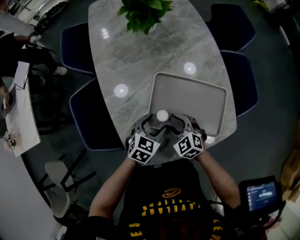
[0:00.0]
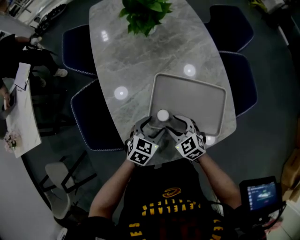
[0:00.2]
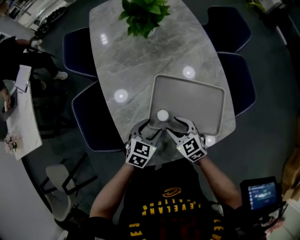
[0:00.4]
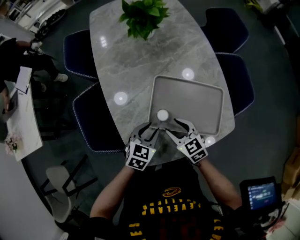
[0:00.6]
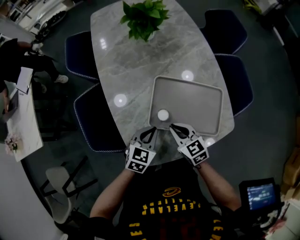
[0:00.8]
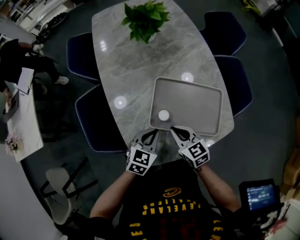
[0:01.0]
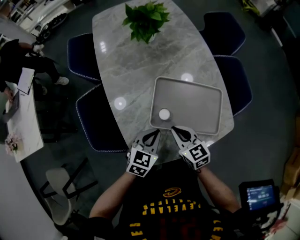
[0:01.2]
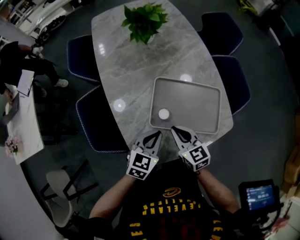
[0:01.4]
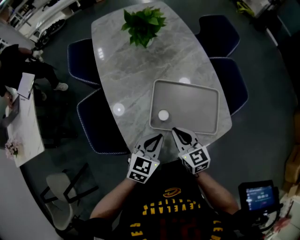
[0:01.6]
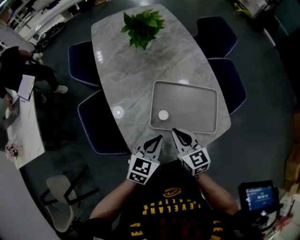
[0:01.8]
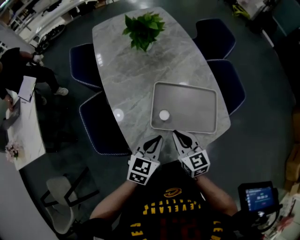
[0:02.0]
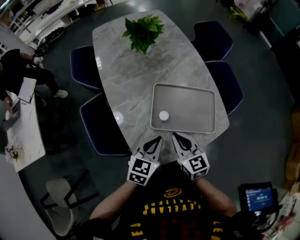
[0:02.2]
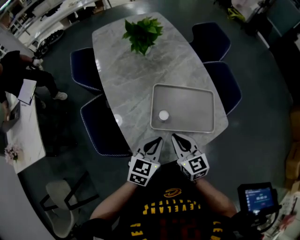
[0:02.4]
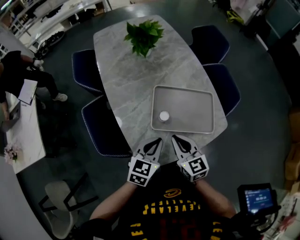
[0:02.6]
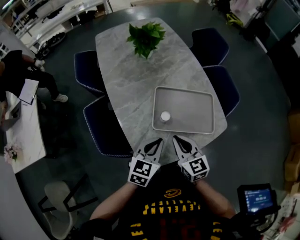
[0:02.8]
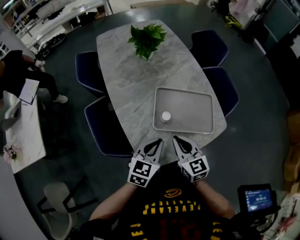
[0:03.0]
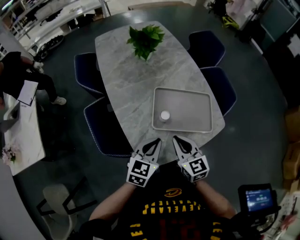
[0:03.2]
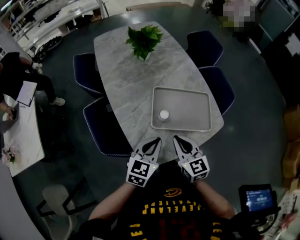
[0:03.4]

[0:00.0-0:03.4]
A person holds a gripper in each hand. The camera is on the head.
0:00.0 to 0:01.6: The right gripper shifts approximately 10 cm upward, rotates approximately 40 degrees, and closes its fingers. The left gripper is displaced upward and backward by roughly 15 cm, and closes its fingers.
0:01.6 to 0:03.4: The left gripper moves upward, roughly 5 cm, while the right gripper moves backward and upward, about 10 cm.

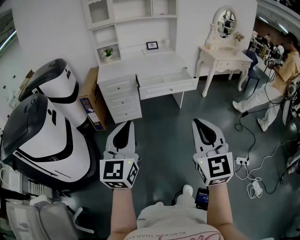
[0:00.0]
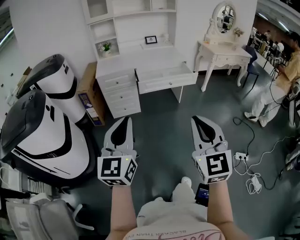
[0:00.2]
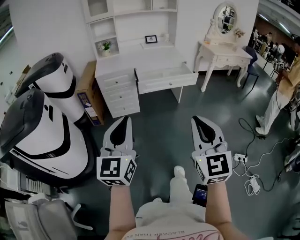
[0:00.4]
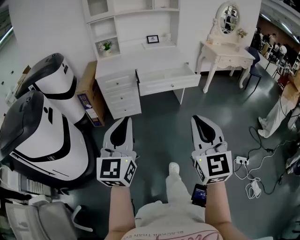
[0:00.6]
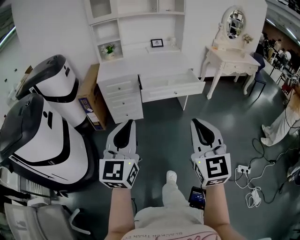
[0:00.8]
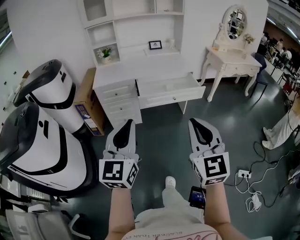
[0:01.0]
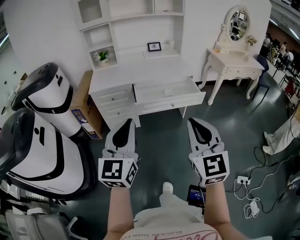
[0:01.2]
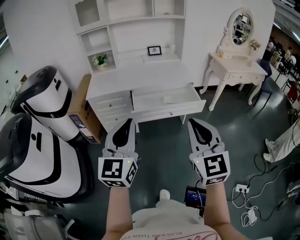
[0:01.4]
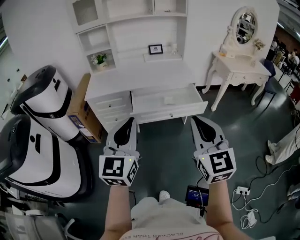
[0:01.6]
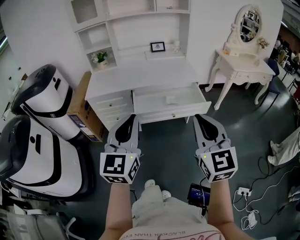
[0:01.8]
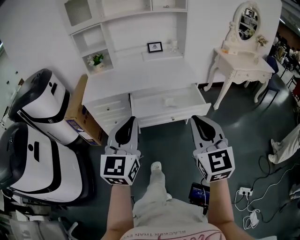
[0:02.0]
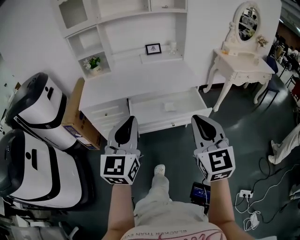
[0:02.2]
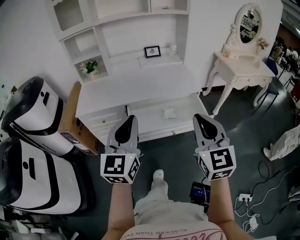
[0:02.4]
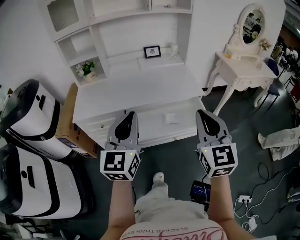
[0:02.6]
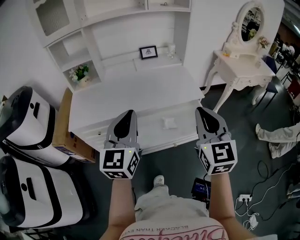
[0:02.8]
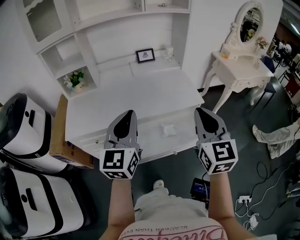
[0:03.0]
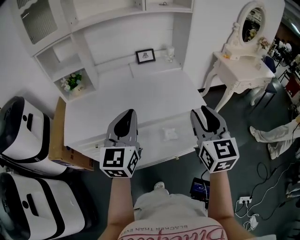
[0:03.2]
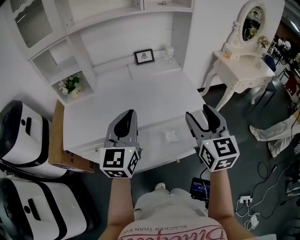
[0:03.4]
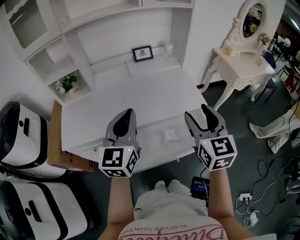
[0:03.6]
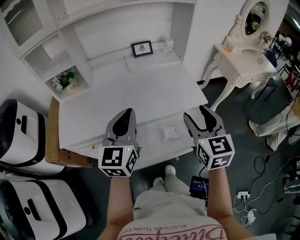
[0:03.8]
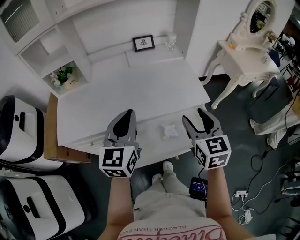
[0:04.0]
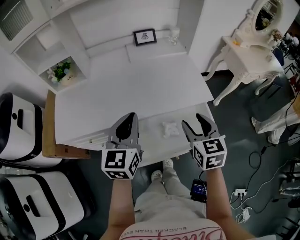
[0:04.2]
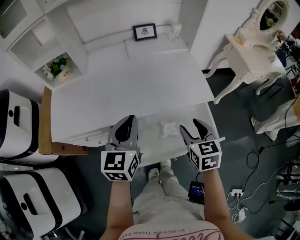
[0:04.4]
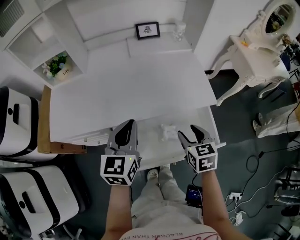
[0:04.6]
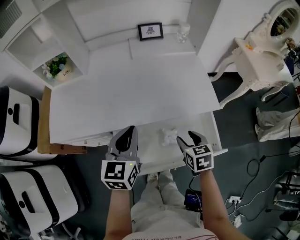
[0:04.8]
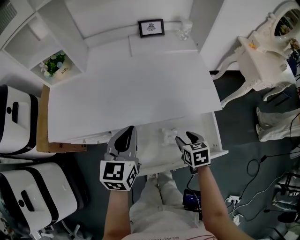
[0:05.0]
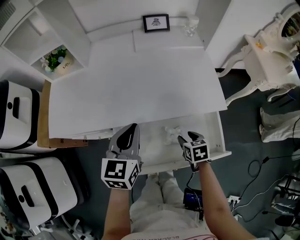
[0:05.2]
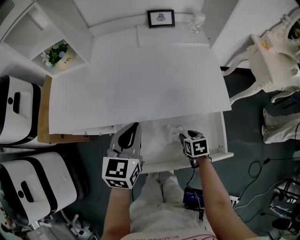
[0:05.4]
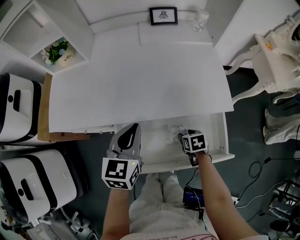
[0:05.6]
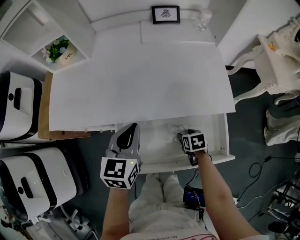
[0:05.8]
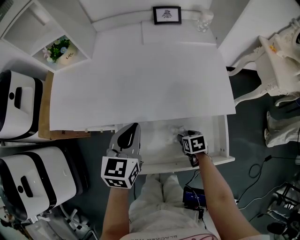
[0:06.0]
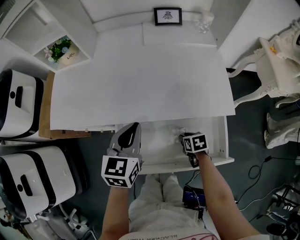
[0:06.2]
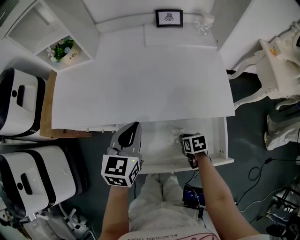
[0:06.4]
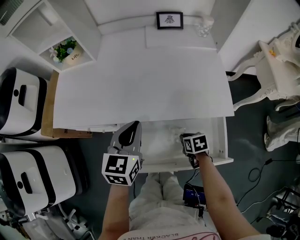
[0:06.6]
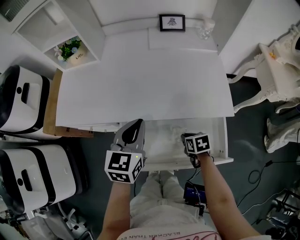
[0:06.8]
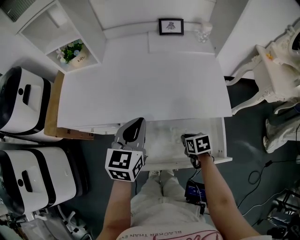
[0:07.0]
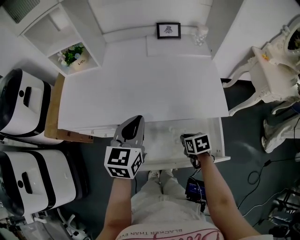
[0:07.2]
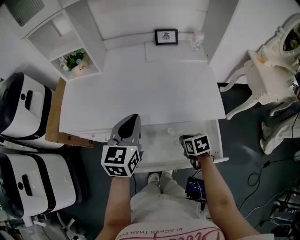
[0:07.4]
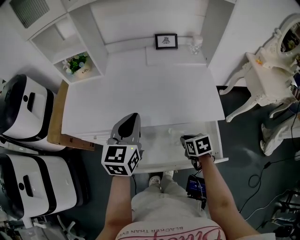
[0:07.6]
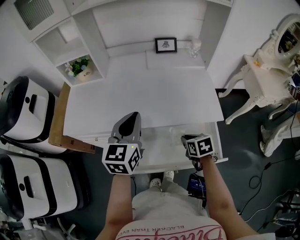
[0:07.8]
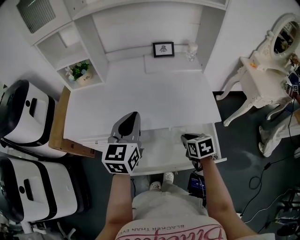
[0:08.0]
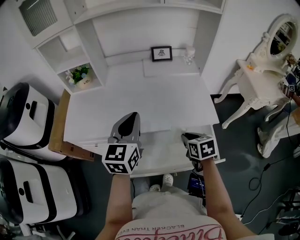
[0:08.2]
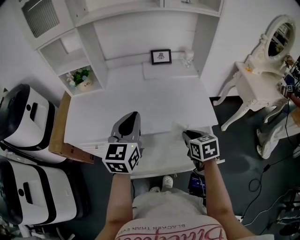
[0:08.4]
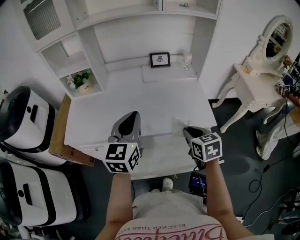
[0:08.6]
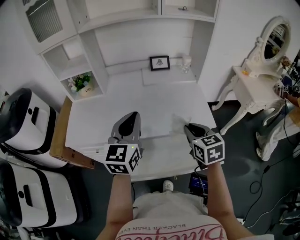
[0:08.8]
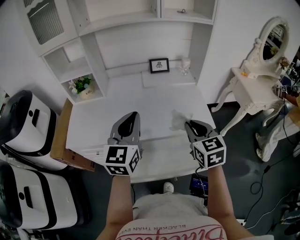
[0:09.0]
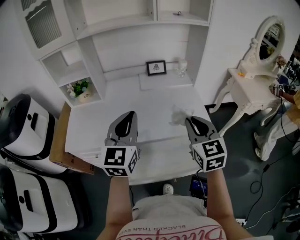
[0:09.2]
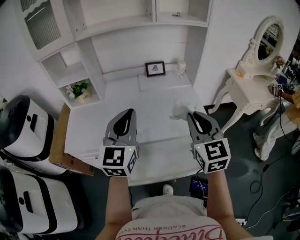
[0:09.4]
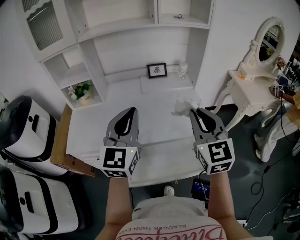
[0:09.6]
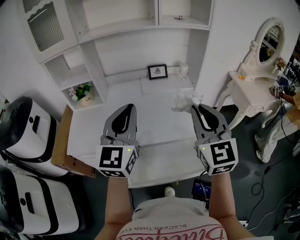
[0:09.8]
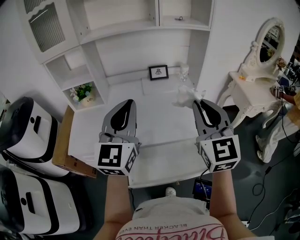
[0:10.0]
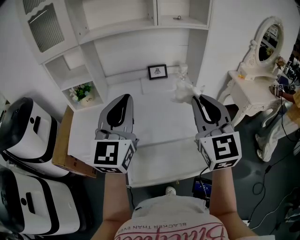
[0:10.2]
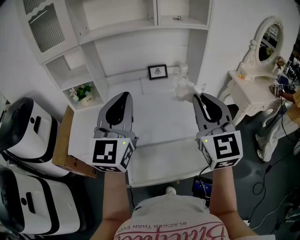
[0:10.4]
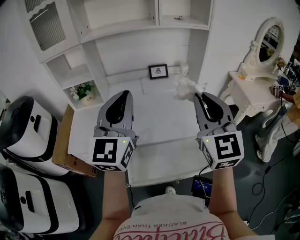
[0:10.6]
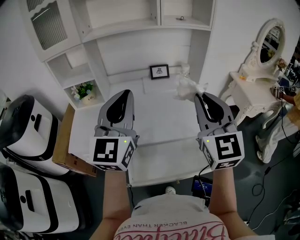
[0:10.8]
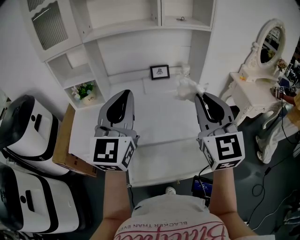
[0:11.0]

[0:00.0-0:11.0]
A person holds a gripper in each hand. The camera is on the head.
0:00.0 to 0:01.6: The grippers both shift forward by about 35 cm.
0:01.6 to 0:03.2: The two grippers travel together, forward, roughly 40 cm. The right gripper opens its fingers.
0:03.2 to 0:04.8: The left gripper travels downward and forward by roughly 20 cm, and rotates some 20 degrees; the right gripper is displaced downward by some 30 cm, points its fingers some 40 degrees further downward, and opens.
0:04.8 to 0:06.2: The left gripper moves roughly 5 cm. Meanwhile the right gripper heads downward, covering roughly 15 cm, turns by about 30 degrees, and closes up.
0:06.2 to 0:07.8: Both grippers move upward, approximately 15 cm. The right gripper closes its fingers.
0:07.8 to 0:09.4: The right gripper heads upward, covering about 30 cm, and tips its fingers upward by about 50 degrees, while the left gripper goes approximately 10 cm upward, and swivels approximately 20 degrees.
0:09.4 to 0:11.0: Both grippers move upward, approximately 10 cm.

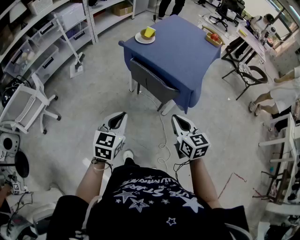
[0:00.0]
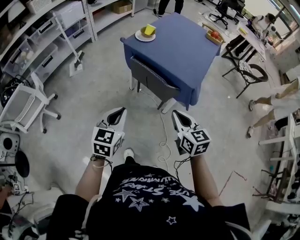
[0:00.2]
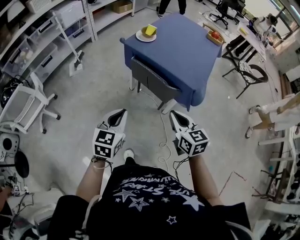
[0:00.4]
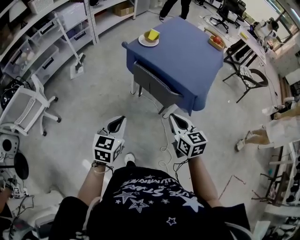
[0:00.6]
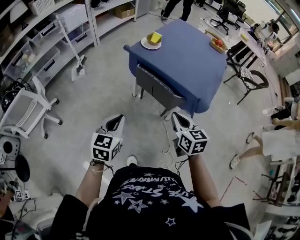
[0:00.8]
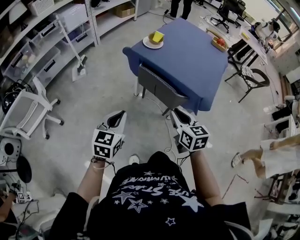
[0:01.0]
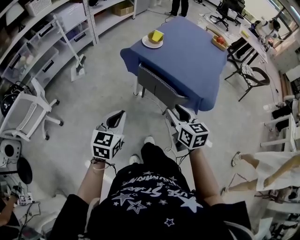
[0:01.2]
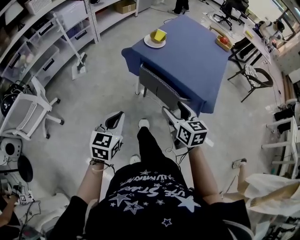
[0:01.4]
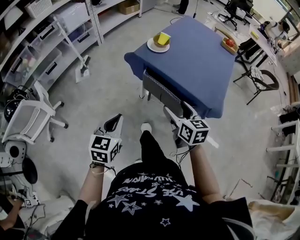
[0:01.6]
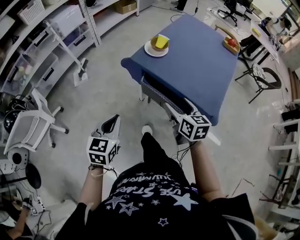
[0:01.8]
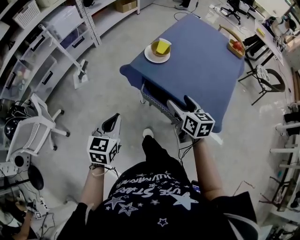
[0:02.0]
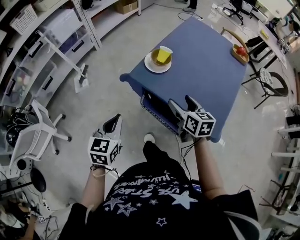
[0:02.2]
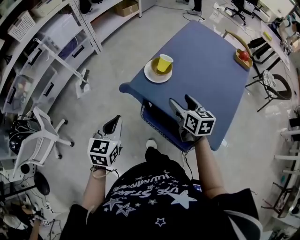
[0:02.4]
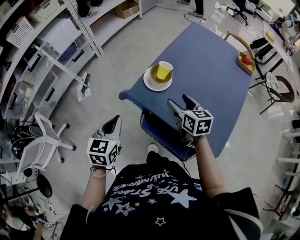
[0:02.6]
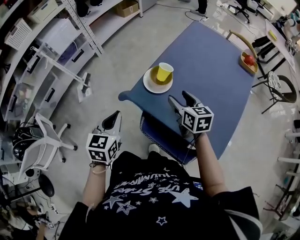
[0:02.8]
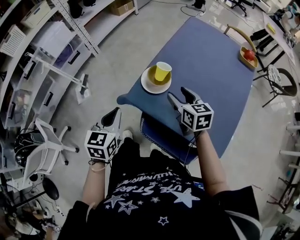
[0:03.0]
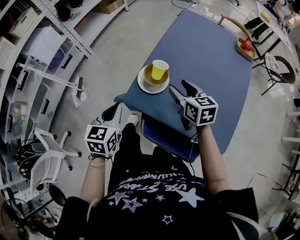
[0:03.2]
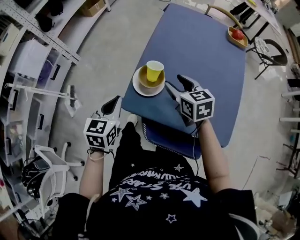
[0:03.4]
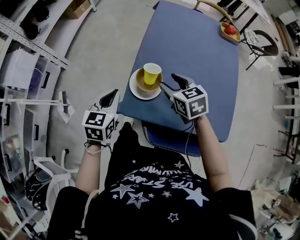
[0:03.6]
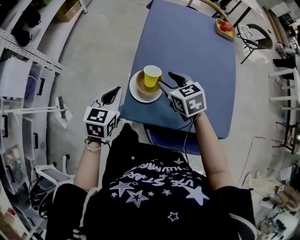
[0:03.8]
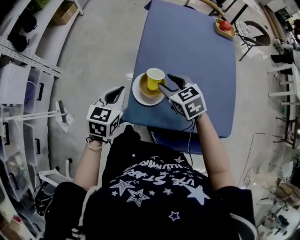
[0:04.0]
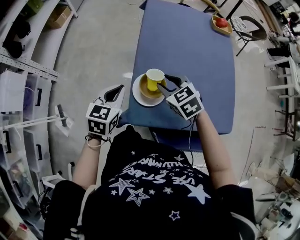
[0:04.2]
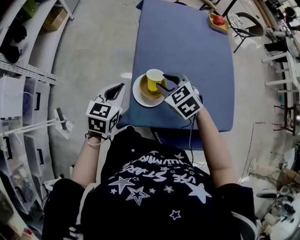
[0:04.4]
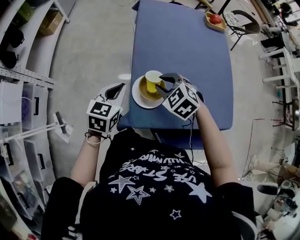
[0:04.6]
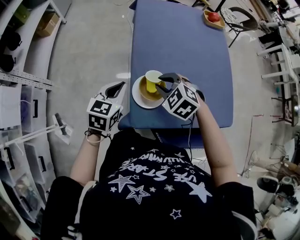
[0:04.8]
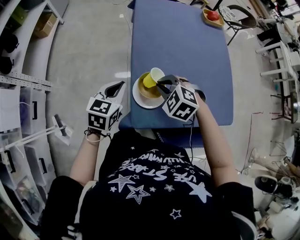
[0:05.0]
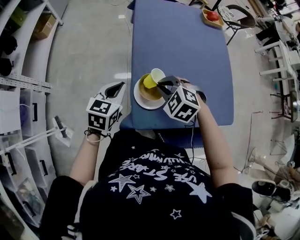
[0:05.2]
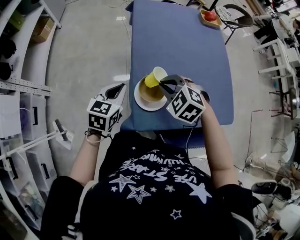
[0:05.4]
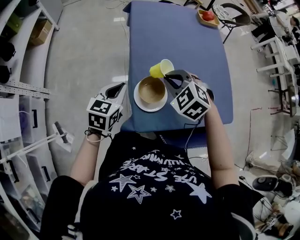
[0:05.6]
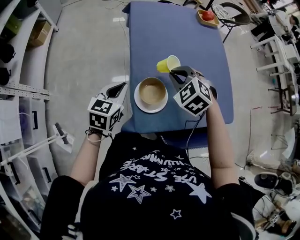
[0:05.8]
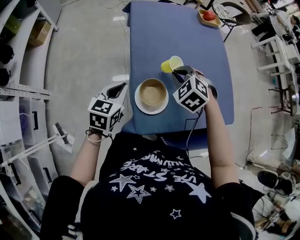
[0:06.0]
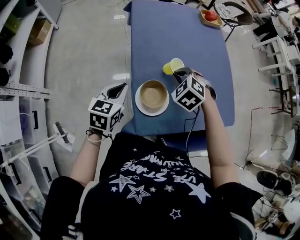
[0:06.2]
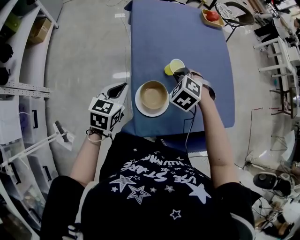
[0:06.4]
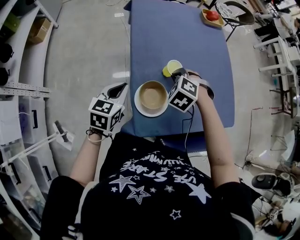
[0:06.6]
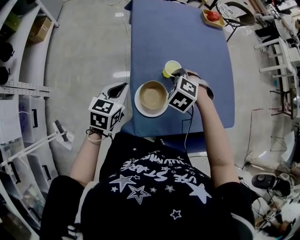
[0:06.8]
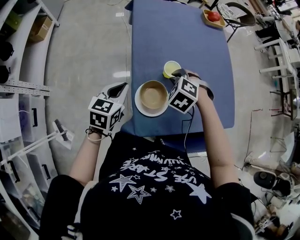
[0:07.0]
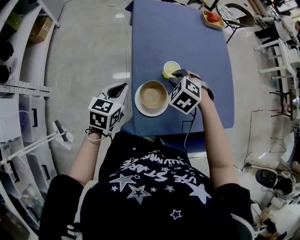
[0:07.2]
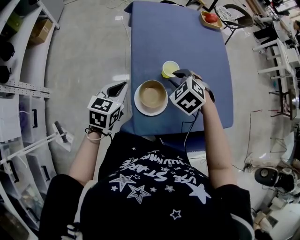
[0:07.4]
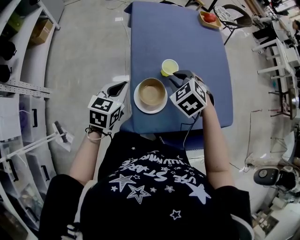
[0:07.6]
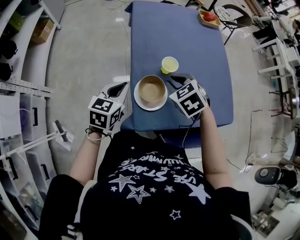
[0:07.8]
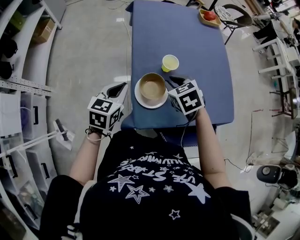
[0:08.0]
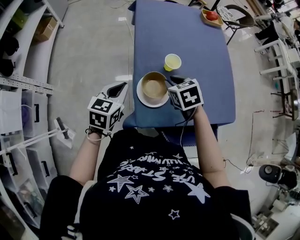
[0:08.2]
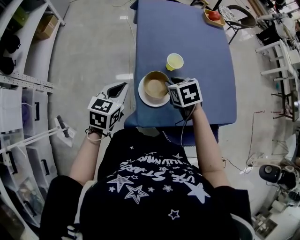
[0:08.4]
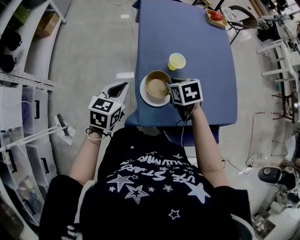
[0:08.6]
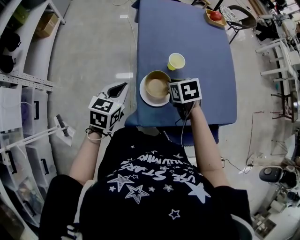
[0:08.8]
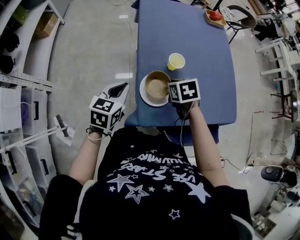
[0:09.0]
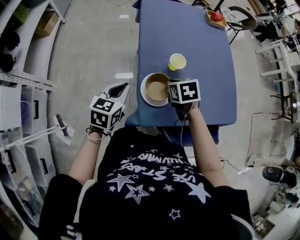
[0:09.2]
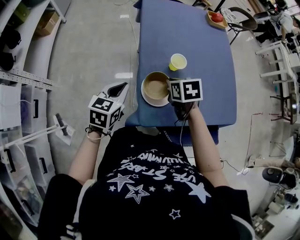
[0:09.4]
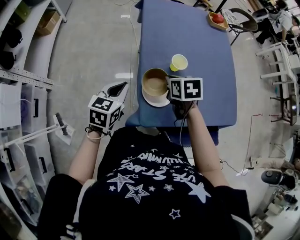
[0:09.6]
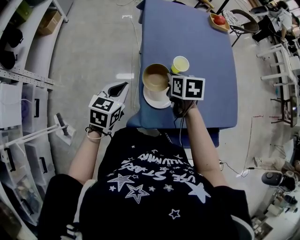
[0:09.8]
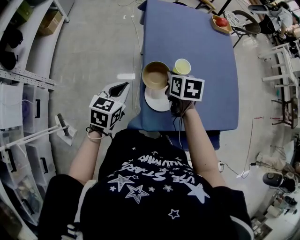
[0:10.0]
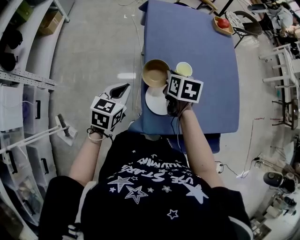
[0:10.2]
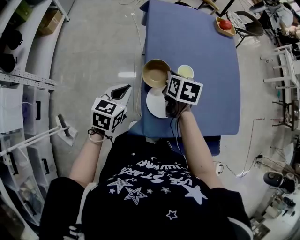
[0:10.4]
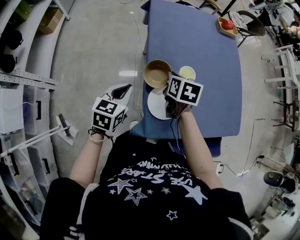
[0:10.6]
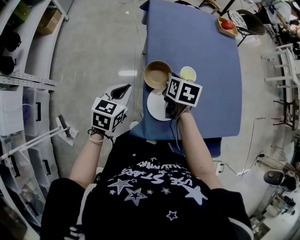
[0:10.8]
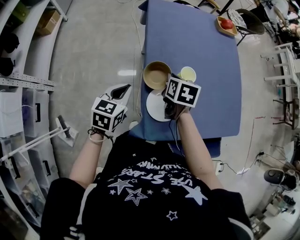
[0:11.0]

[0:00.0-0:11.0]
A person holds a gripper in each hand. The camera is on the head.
0:00.0 to 0:01.6: Both grippers move forward and to the left, roughly 20 cm. The right gripper opens its fingers.
0:01.6 to 0:03.2: Both grippers are carried forward, about 40 cm.
0:03.2 to 0:04.8: The left gripper moves about 20 cm, and swivels approximately 40 degrees. The right gripper moves some 10 cm, swivels about 50 degrees, and closes its fingers.
0:04.8 to 0:06.2: The right gripper heads forward and to the right, covering about 10 cm.
0:06.2 to 0:07.8: The right gripper goes some 5 cm backward, and rotates roughly 20 degrees.
0:07.8 to 0:09.4: The right gripper travels downward by roughly 5 cm, and turns by roughly 30 degrees.
0:09.4 to 0:11.0: The left gripper heads forward, covering about 5 cm. The right gripper travels forward by roughly 10 cm, and turns by approximately 20 degrees.
